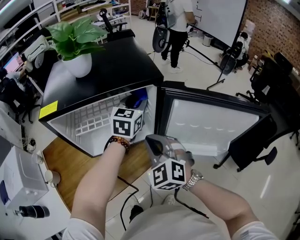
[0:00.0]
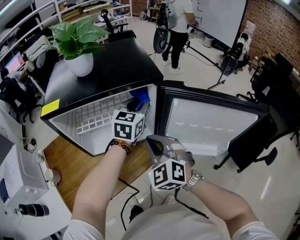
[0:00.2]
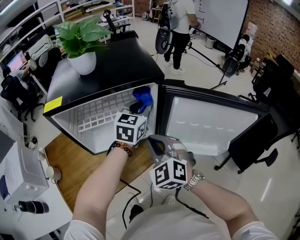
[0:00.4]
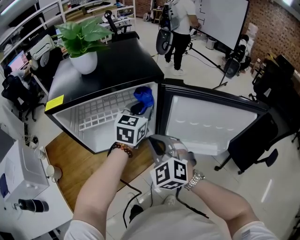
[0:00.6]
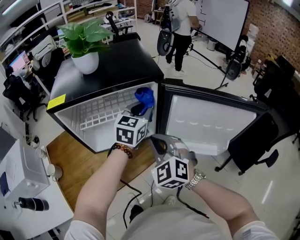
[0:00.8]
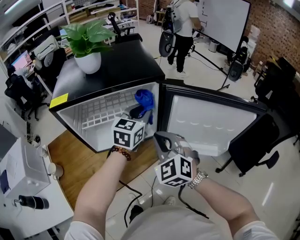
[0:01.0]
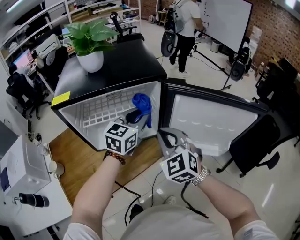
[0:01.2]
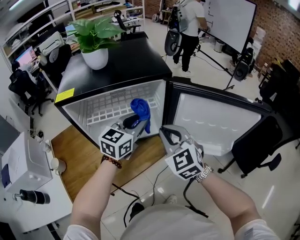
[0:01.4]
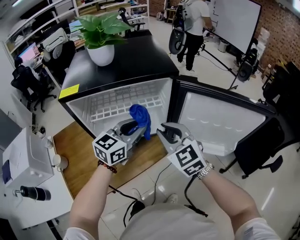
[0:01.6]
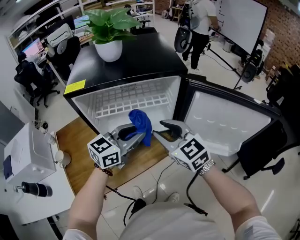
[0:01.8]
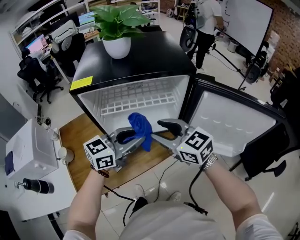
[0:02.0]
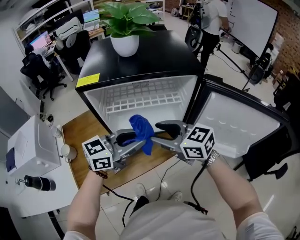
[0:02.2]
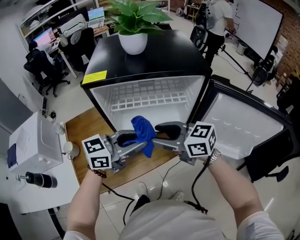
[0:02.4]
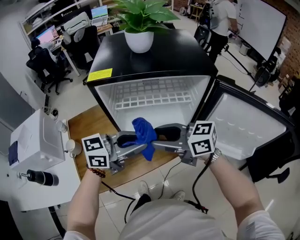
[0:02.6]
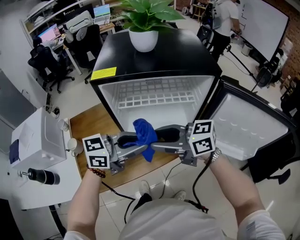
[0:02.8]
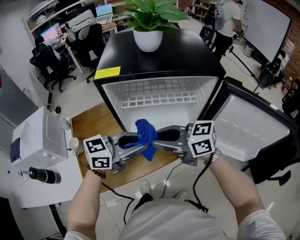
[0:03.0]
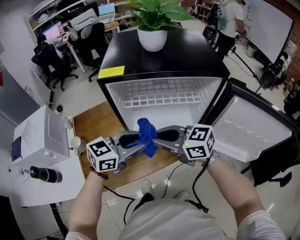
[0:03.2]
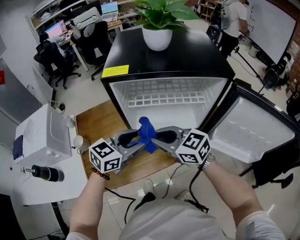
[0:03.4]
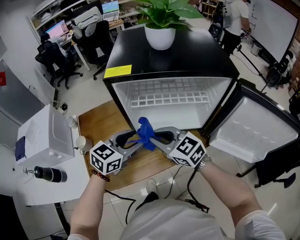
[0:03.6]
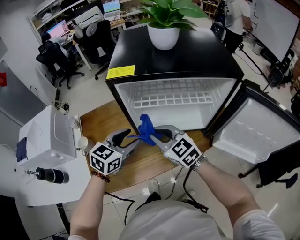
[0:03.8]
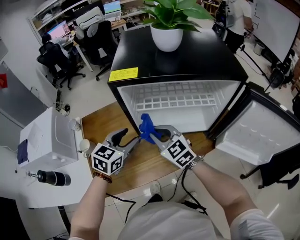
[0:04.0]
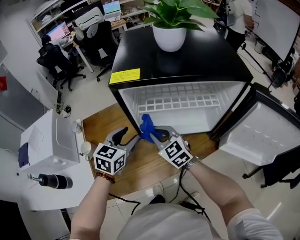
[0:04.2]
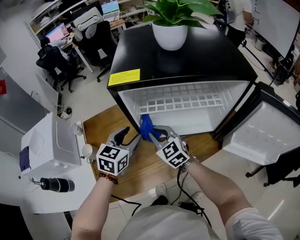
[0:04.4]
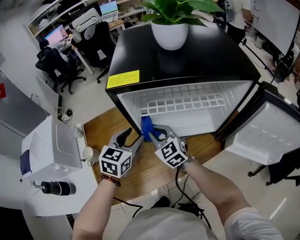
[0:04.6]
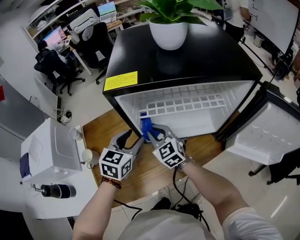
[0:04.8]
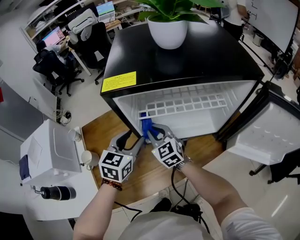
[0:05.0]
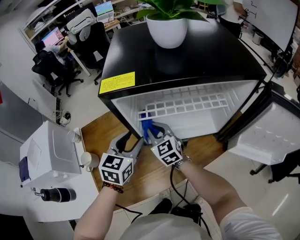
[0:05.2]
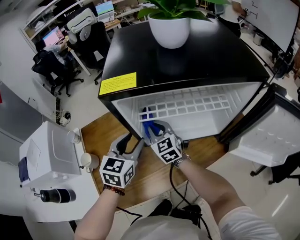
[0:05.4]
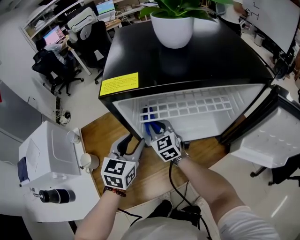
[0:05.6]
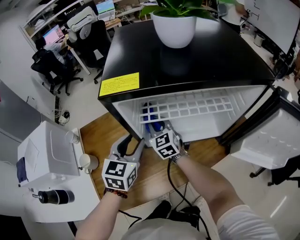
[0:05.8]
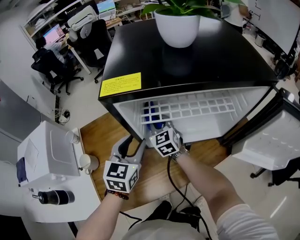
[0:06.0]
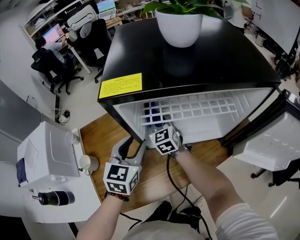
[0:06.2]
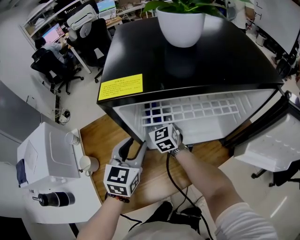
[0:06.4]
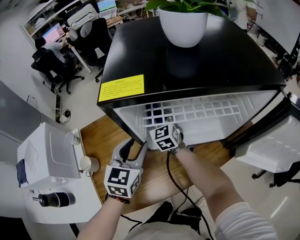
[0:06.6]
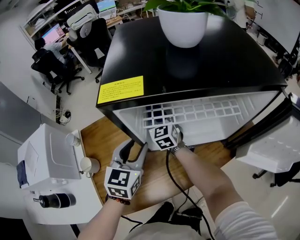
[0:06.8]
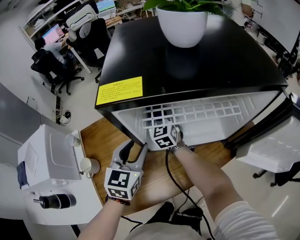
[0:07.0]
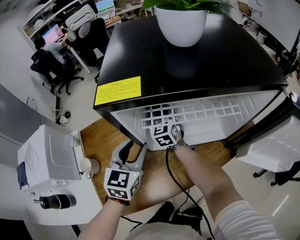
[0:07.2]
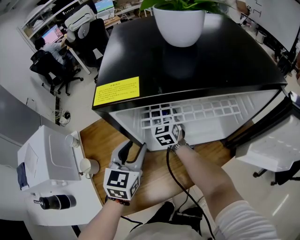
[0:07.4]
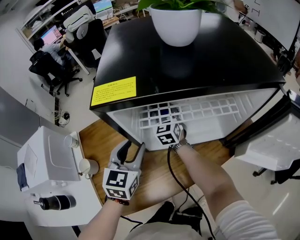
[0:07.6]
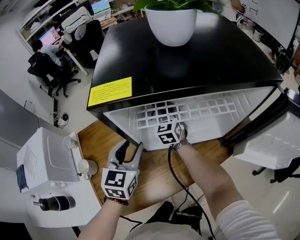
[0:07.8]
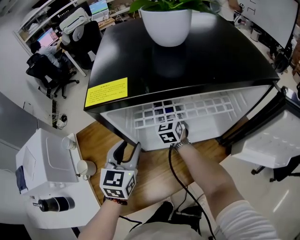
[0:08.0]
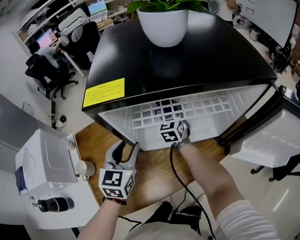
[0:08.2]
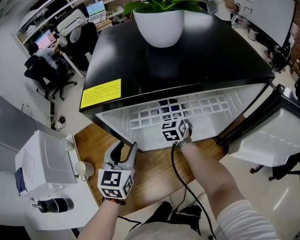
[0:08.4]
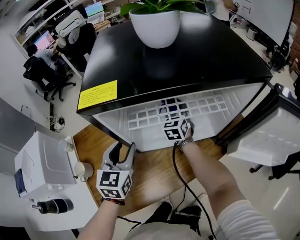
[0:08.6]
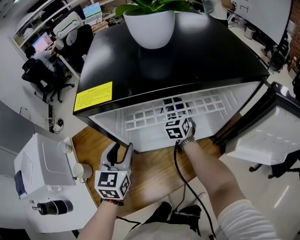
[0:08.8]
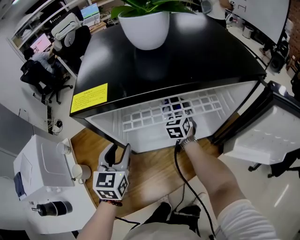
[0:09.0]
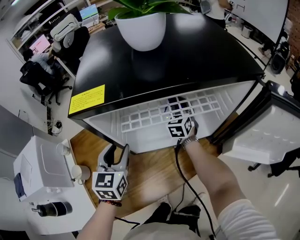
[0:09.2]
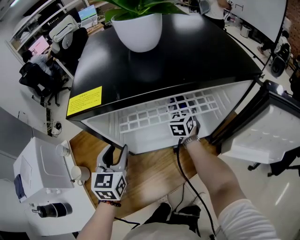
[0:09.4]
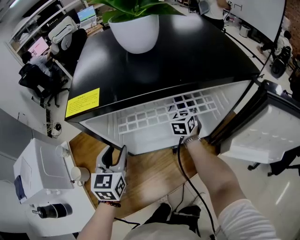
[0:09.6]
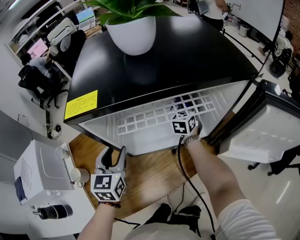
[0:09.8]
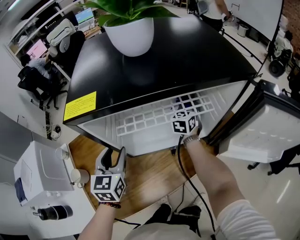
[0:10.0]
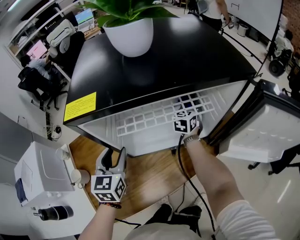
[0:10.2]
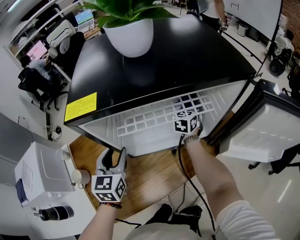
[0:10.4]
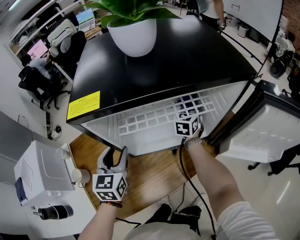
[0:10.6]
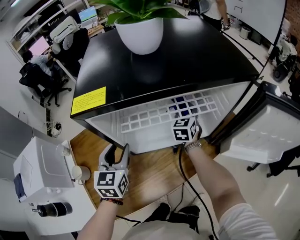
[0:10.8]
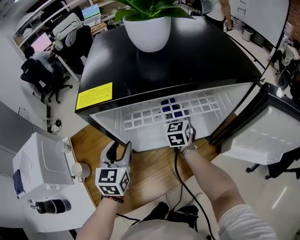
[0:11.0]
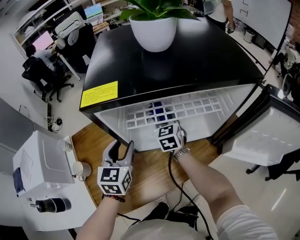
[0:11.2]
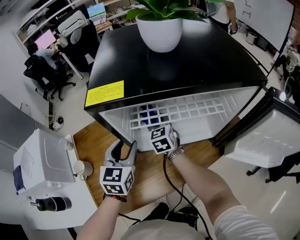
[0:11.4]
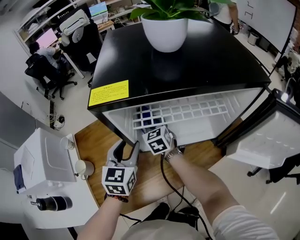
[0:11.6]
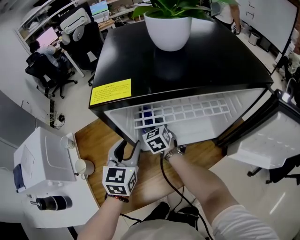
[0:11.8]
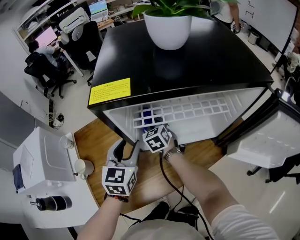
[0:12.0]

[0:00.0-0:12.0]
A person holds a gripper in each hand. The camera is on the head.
0:00.0 to 0:01.6: The left gripper is displaced backward by approximately 15 cm; the right gripper changes its angle by about 20 degrees.
0:01.6 to 0:03.0: The right gripper moves about 15 cm, changes its angle by roughly 60 degrees, and opens, then closes again; the left gripper ends up about 15 cm from where it was.
0:03.0 to 0:04.4: The left gripper changes place by roughly 20 cm, rotates approximately 50 degrees, and opens its fingers. Meanwhile the right gripper shifts by roughly 20 cm, and turns by approximately 50 degrees.
0:04.4 to 0:06.0: The right gripper heads forward, covering roughly 15 cm.
0:06.0 to 0:07.6: The right gripper travels forward by about 5 cm.
0:07.6 to 0:09.0: The right gripper is displaced to the right by approximately 15 cm.
0:09.0 to 0:10.4: The right gripper travels to the right by about 10 cm.
0:10.4 to 0:12.0: The right gripper moves to the left, about 25 cm, and rotates approximately 40 degrees.

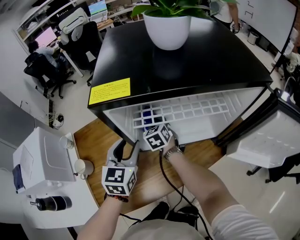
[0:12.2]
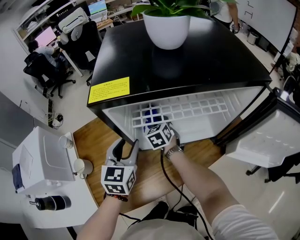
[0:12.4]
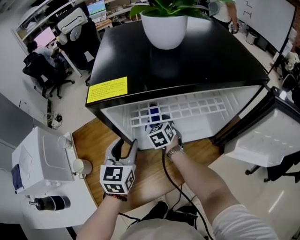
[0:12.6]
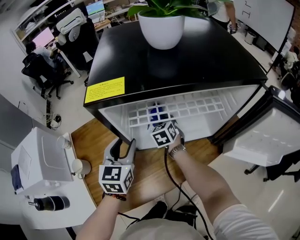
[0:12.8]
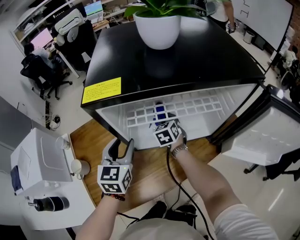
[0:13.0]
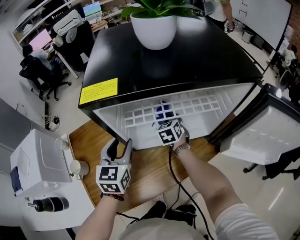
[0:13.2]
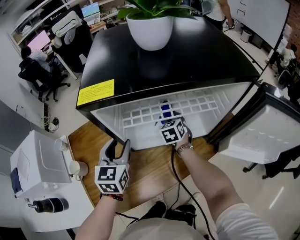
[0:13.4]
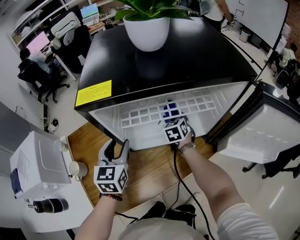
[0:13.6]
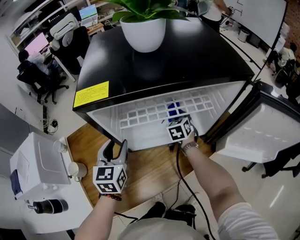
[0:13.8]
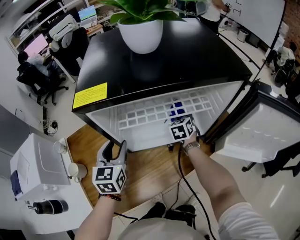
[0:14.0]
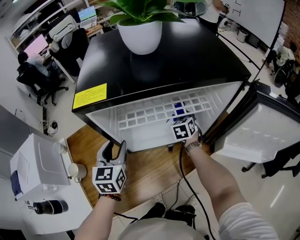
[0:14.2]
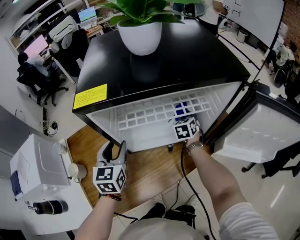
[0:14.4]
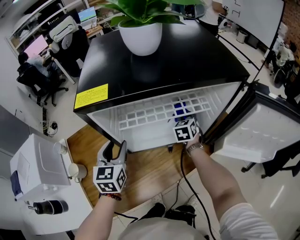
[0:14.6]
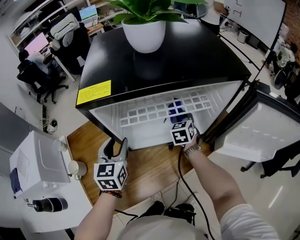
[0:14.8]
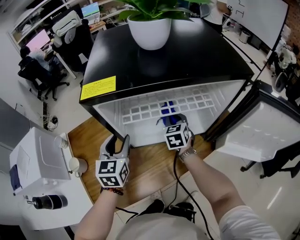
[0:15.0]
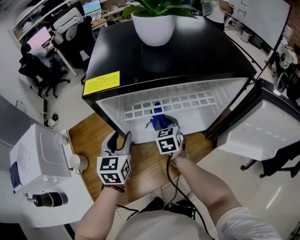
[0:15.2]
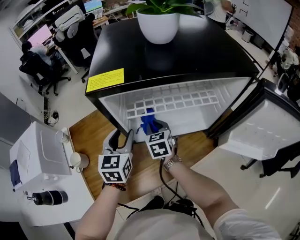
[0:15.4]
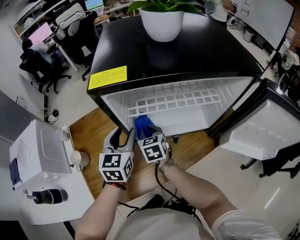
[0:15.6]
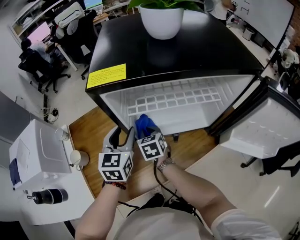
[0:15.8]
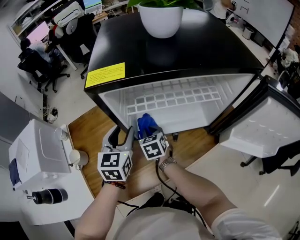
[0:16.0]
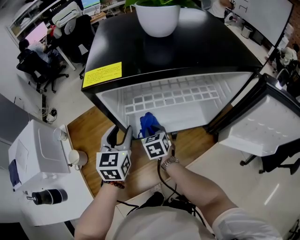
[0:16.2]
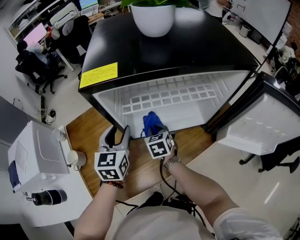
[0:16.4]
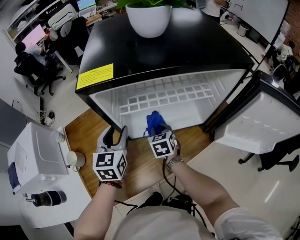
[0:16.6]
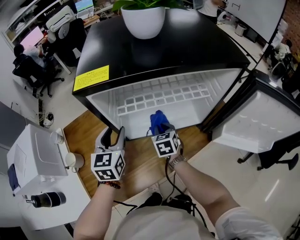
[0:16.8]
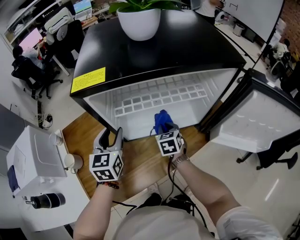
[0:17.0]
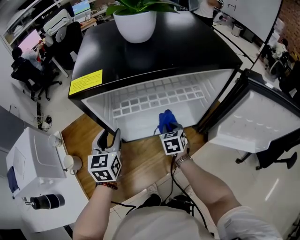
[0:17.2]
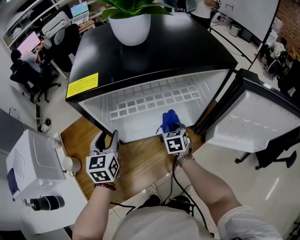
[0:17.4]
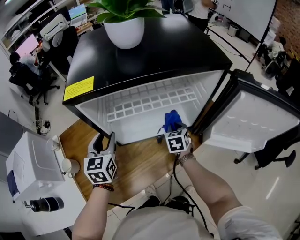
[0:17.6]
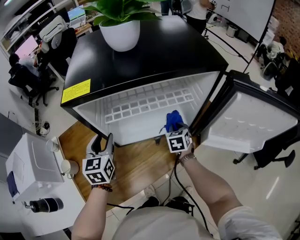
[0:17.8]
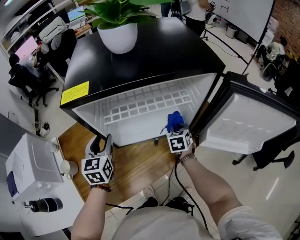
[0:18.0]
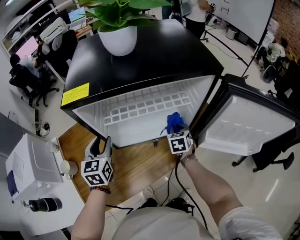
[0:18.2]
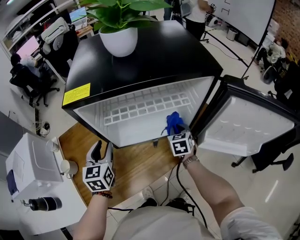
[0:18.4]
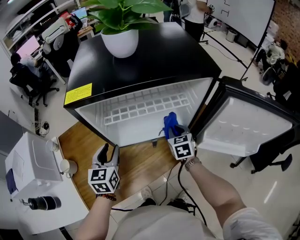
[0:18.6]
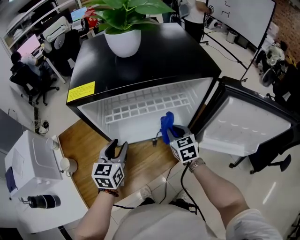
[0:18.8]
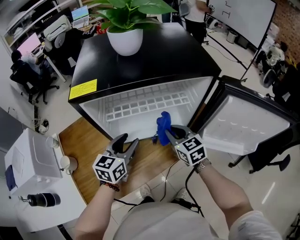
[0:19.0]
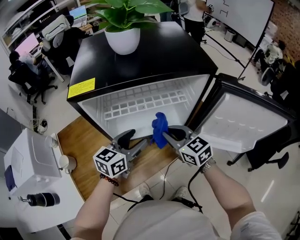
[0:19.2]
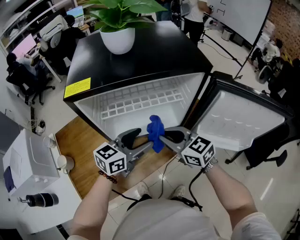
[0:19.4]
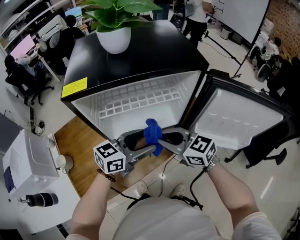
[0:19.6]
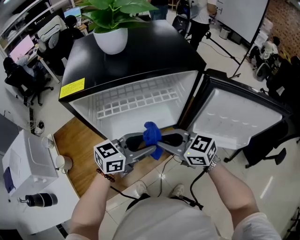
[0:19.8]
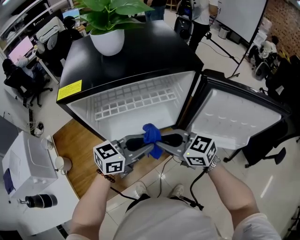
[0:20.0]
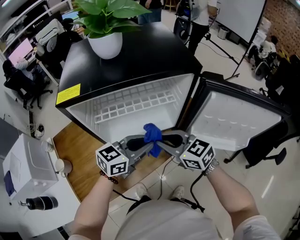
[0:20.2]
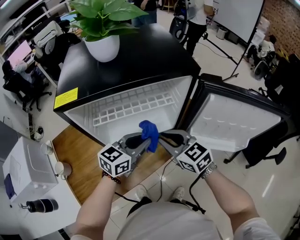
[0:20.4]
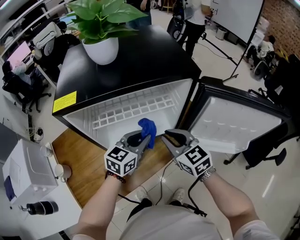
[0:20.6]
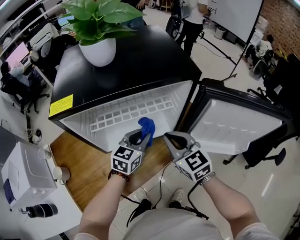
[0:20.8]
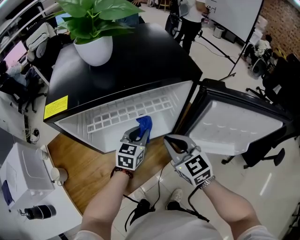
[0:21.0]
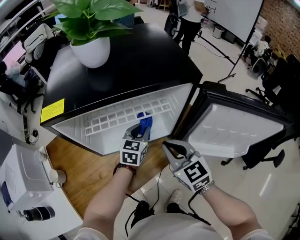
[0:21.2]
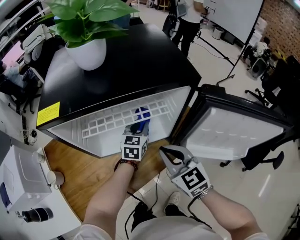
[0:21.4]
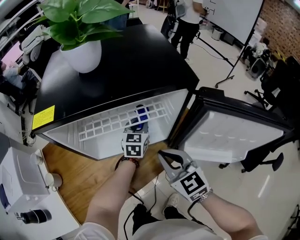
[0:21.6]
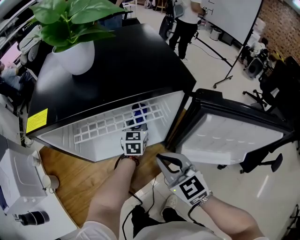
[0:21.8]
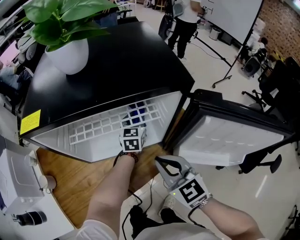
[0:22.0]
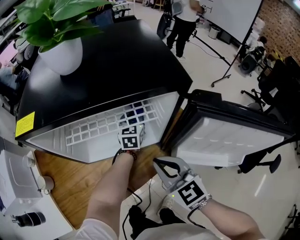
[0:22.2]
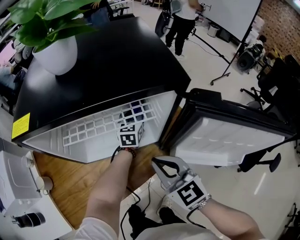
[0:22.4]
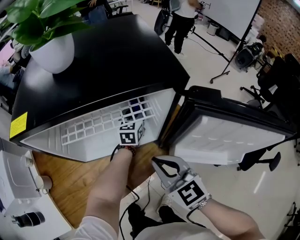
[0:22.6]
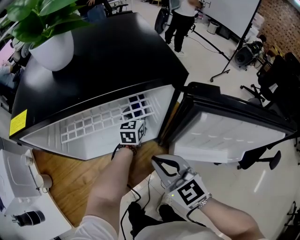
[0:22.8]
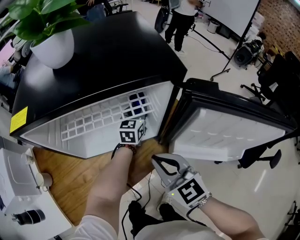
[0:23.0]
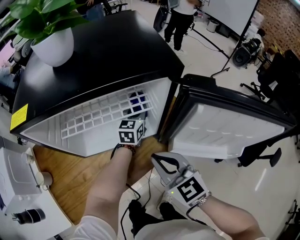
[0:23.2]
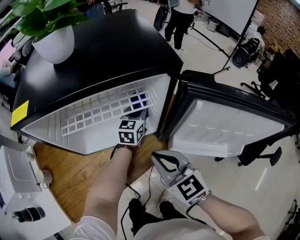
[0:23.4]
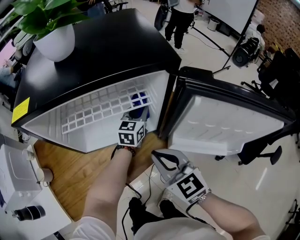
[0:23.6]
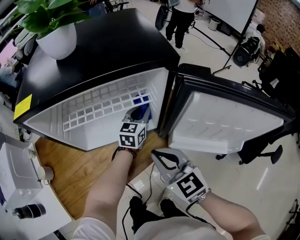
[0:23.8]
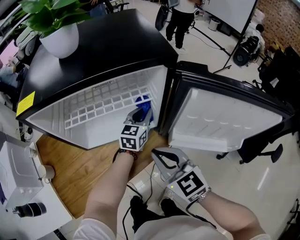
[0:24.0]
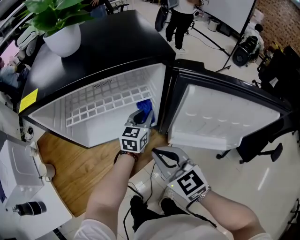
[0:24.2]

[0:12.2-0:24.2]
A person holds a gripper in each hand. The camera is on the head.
0:12.2 to 0:13.8: The right gripper shifts some 20 cm to the right.
0:13.8 to 0:15.2: The right gripper travels to the left, backward and upward by some 15 cm.
0:15.2 to 0:16.6: The right gripper travels downward by some 5 cm, and travels to the left and back again, approximately 10 cm each way.
0:16.6 to 0:18.2: The right gripper is displaced to the right by approximately 20 cm.
0:18.2 to 0:19.8: The left gripper moves some 25 cm, and changes its angle by approximately 60 degrees; the right gripper is displaced upward by about 20 cm, and swivels some 60 degrees.
0:19.8 to 0:21.2: The left gripper ends up roughly 20 cm from where it was, changes its angle by approximately 40 degrees, and closes its fingers. The right gripper changes place by approximately 10 cm, and swivels roughly 30 degrees.
0:21.2 to 0:22.6: The left gripper goes approximately 15 cm forward and to the right.
0:22.6 to 0:24.2: The left gripper heads backward, covering about 10 cm.
